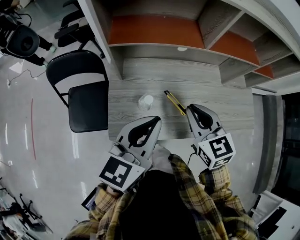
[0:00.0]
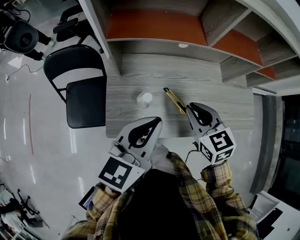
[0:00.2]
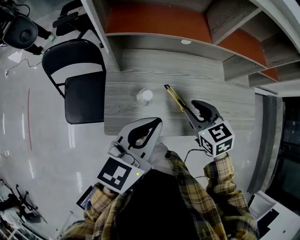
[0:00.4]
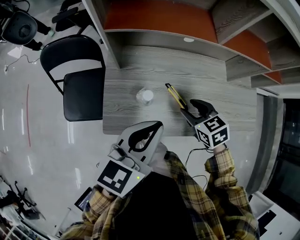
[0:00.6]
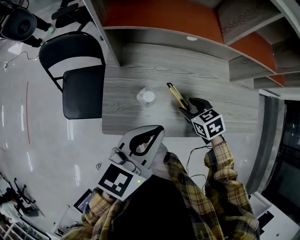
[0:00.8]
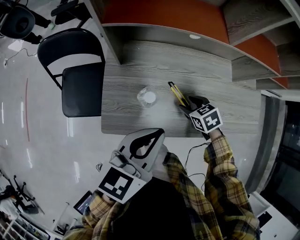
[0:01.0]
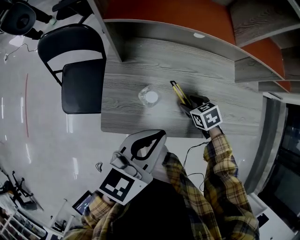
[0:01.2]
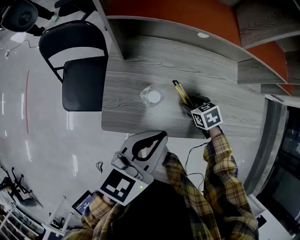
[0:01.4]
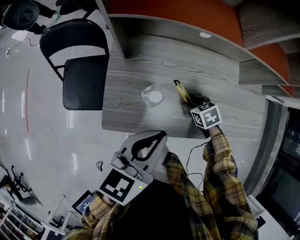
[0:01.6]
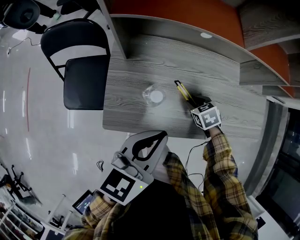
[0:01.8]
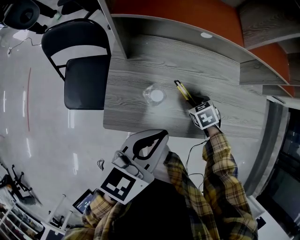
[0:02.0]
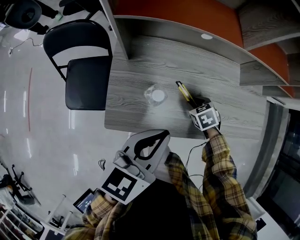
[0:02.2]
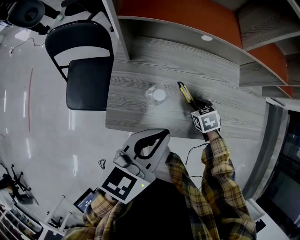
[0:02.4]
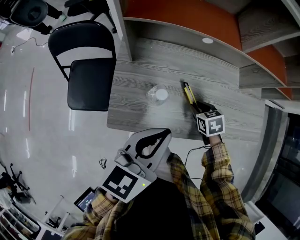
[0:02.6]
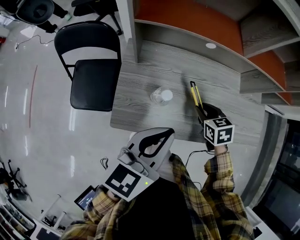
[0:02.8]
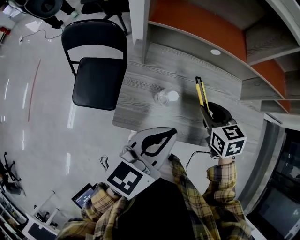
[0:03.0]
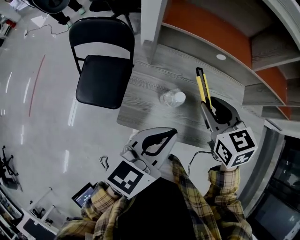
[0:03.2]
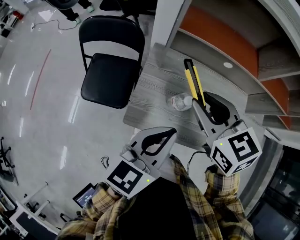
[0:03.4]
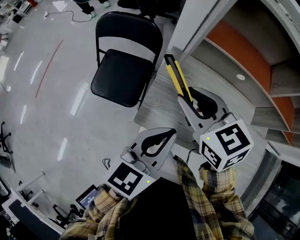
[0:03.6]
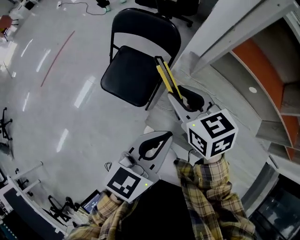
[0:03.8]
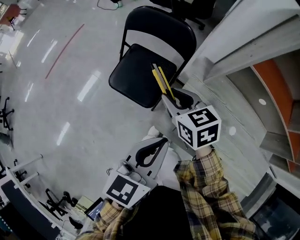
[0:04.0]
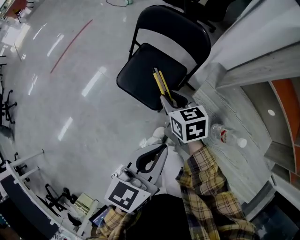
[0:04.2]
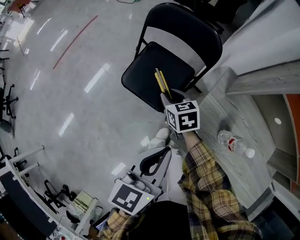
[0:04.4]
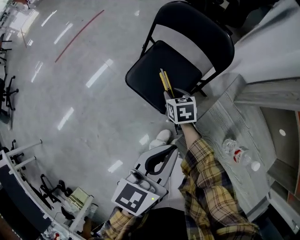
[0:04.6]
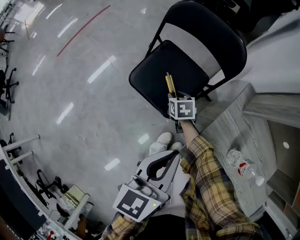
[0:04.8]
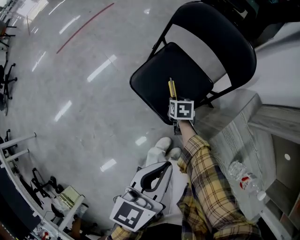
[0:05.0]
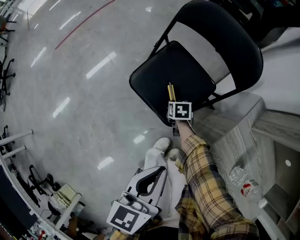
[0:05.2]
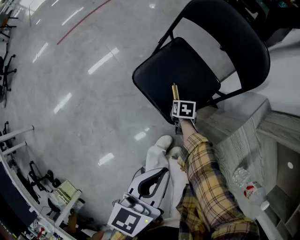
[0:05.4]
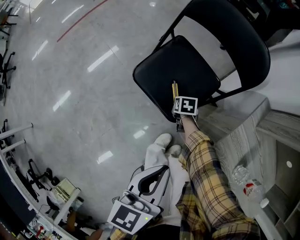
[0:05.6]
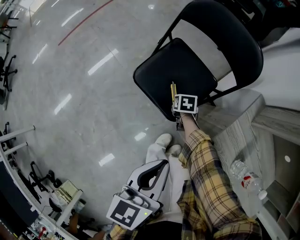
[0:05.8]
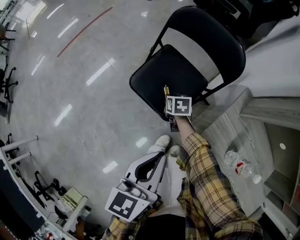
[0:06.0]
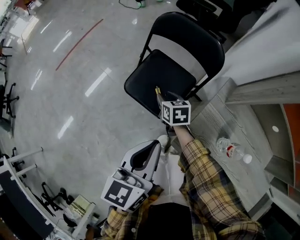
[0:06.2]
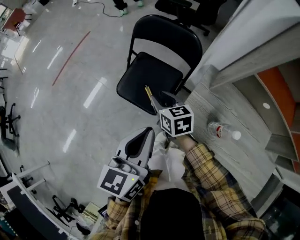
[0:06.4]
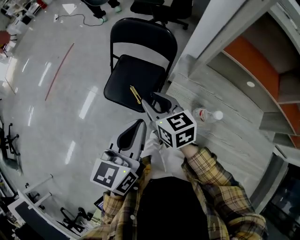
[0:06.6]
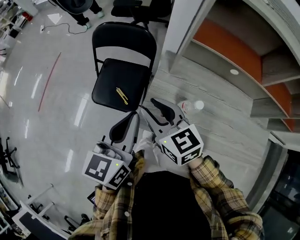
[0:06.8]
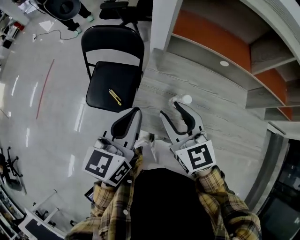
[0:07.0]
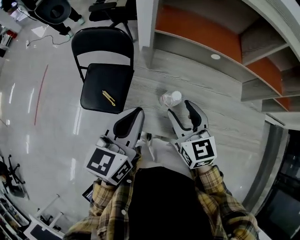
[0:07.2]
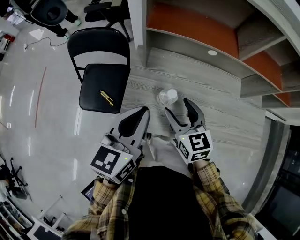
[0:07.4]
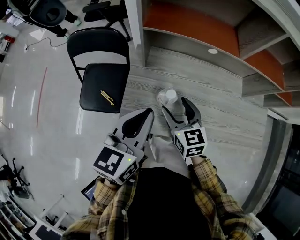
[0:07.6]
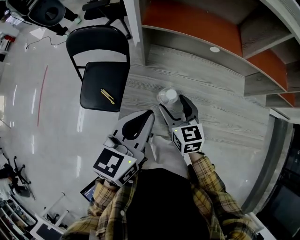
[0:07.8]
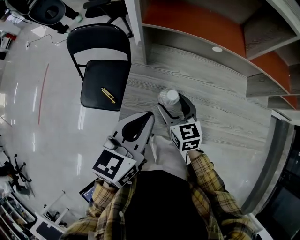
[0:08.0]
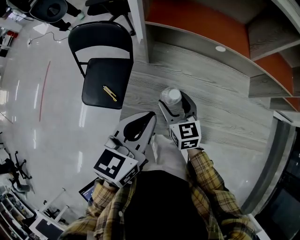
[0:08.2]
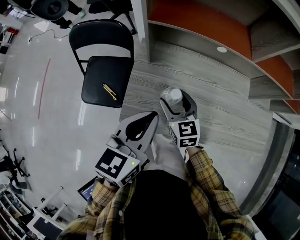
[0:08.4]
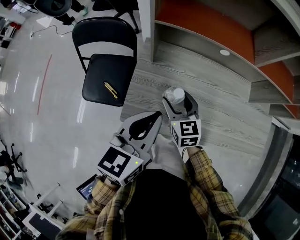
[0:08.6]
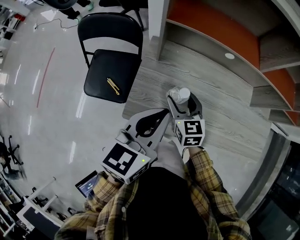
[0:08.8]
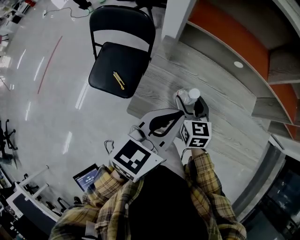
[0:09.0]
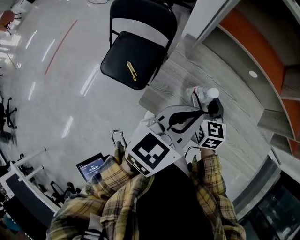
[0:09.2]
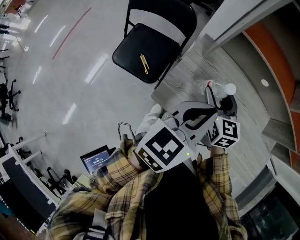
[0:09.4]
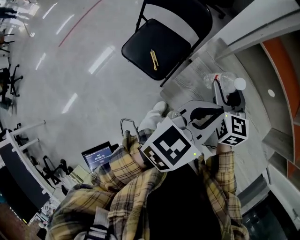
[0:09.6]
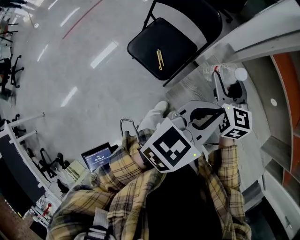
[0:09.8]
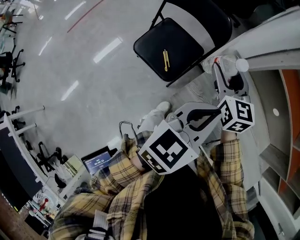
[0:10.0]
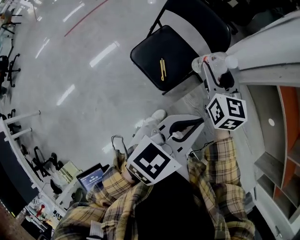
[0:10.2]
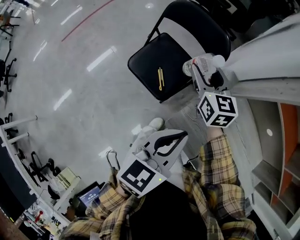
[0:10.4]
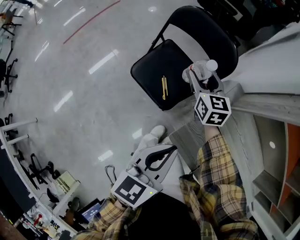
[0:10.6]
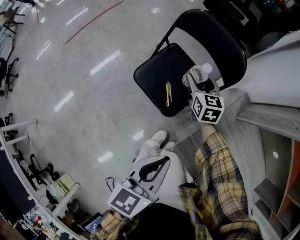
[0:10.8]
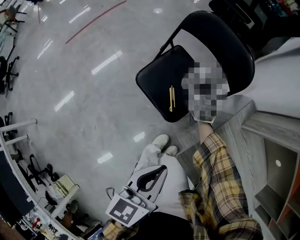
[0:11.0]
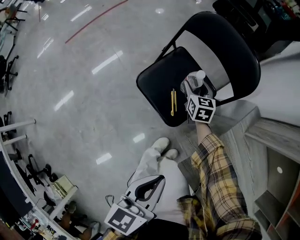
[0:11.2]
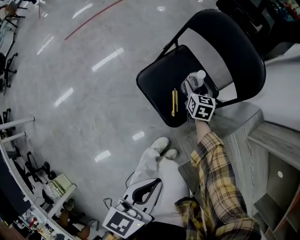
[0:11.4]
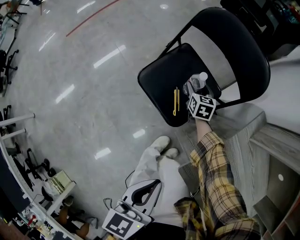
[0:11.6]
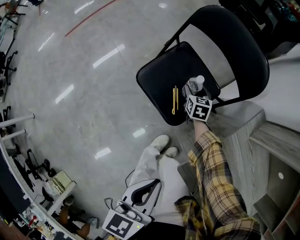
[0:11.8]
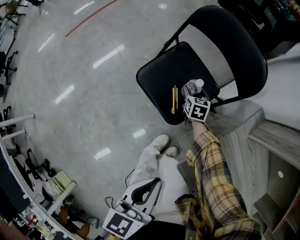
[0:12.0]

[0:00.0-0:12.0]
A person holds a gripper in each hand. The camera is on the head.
0:00.0 to 0:01.6: The left gripper shifts some 10 cm downward; the right gripper goes some 30 cm downward, tips its fingers downward by approximately 40 degrees, and opens.
0:01.6 to 0:03.0: The right gripper is displaced upward by roughly 20 cm, and changes its angle by about 20 degrees.
0:03.0 to 0:04.4: The left gripper ends up roughly 25 cm from where it was, and swivels roughly 40 degrees. Meanwhile the right gripper ends up approximately 50 cm from where it was, and rotates roughly 30 degrees.
0:04.4 to 0:06.0: The left gripper travels to the left and downward by some 10 cm. The right gripper moves downward, roughly 20 cm.
0:06.0 to 0:07.6: The right gripper moves about 50 cm, angles its fingers upward, by some 30 degrees, and opens up, while the left gripper changes place by approximately 30 cm, and rotates approximately 50 degrees.
0:07.6 to 0:09.0: The right gripper changes place by about 5 cm.
0:09.0 to 0:10.4: The right gripper ends up roughly 35 cm from where it was, and swivels roughly 30 degrees; the left gripper shifts by some 20 cm, and turns by roughly 30 degrees.
0:10.4 to 0:12.0: The left gripper travels downward and to the left by some 15 cm, and turns by about 30 degrees; the right gripper is displaced downward by approximately 35 cm, and rotates about 30 degrees.

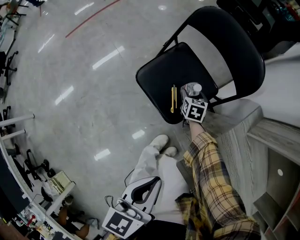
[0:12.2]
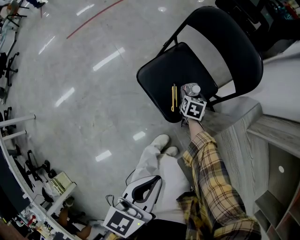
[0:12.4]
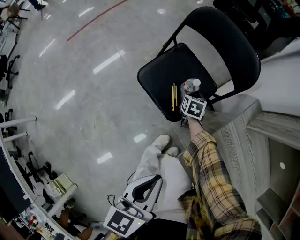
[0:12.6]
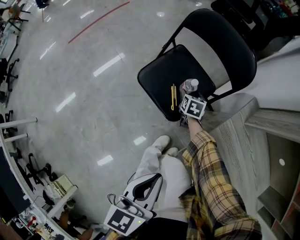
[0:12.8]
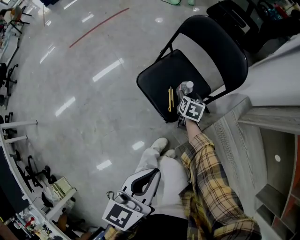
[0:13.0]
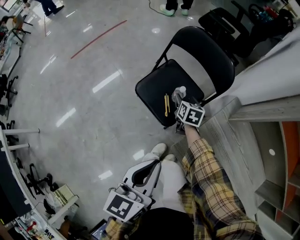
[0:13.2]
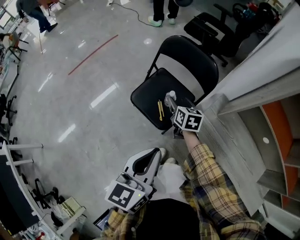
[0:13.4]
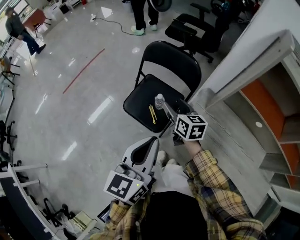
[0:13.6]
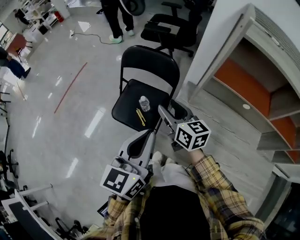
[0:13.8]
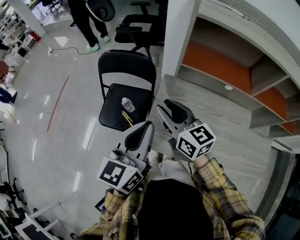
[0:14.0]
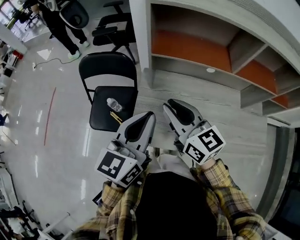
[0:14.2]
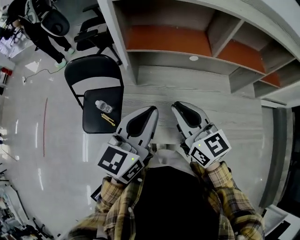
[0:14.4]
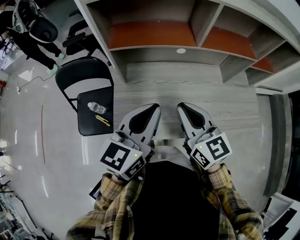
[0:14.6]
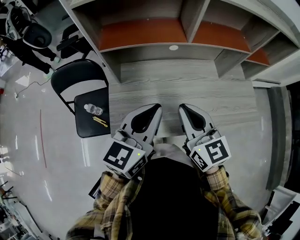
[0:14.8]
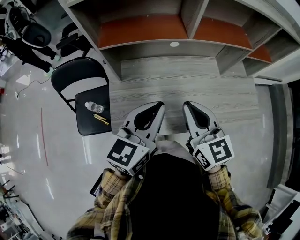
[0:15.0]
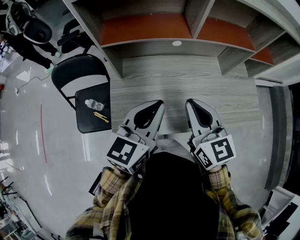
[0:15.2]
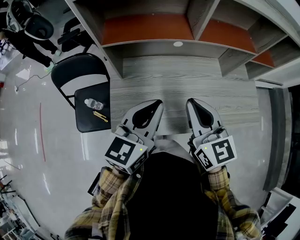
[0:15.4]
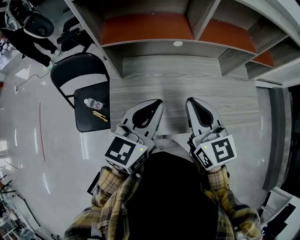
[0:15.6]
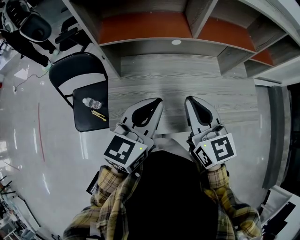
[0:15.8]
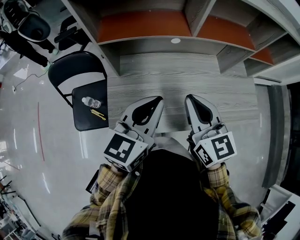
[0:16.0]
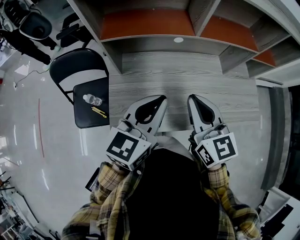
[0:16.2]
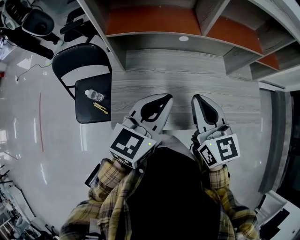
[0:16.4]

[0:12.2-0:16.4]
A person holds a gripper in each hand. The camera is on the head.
0:12.2 to 0:13.6: The right gripper moves upward, some 35 cm, and rotates some 30 degrees; the left gripper is displaced upward by some 20 cm, and turns by roughly 30 degrees.
0:13.6 to 0:15.0: The right gripper ends up some 50 cm from where it was, rotates roughly 50 degrees, and closes up. Meanwhile the left gripper shifts by some 30 cm, and swivels about 50 degrees.
0:15.0 to 0:16.4: The grippers stay close to where they were, moving slightly.

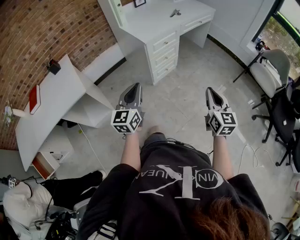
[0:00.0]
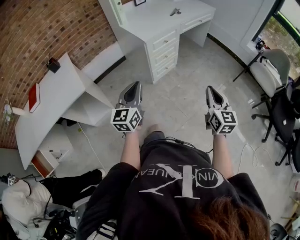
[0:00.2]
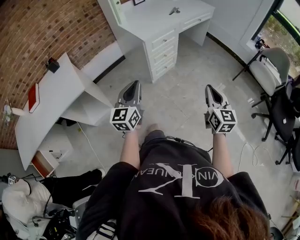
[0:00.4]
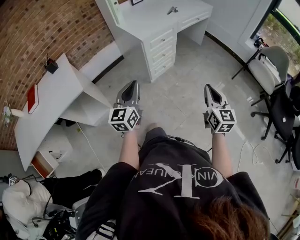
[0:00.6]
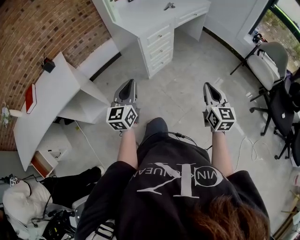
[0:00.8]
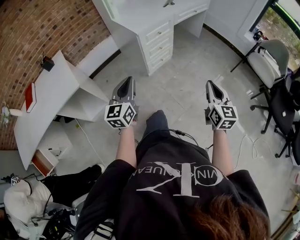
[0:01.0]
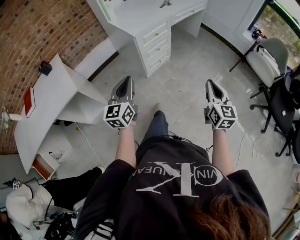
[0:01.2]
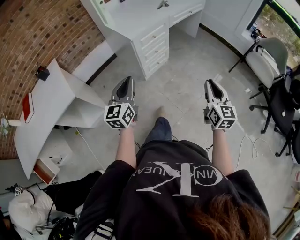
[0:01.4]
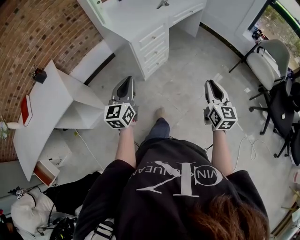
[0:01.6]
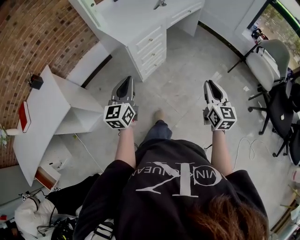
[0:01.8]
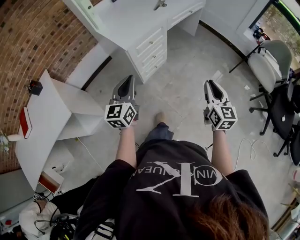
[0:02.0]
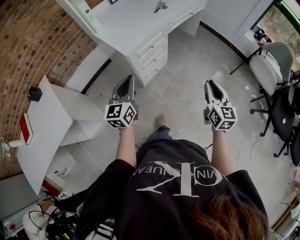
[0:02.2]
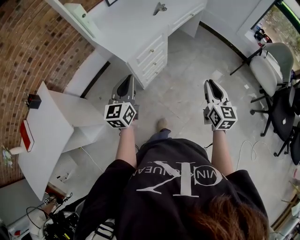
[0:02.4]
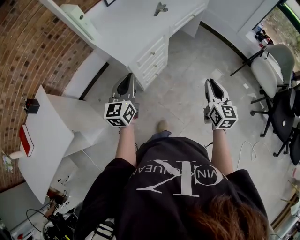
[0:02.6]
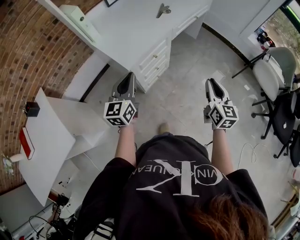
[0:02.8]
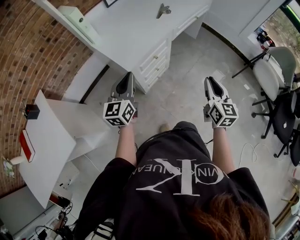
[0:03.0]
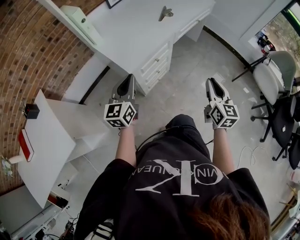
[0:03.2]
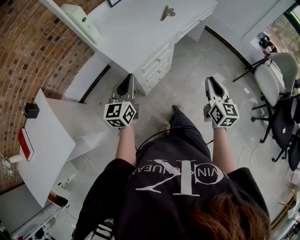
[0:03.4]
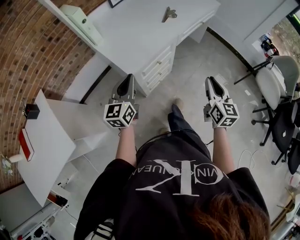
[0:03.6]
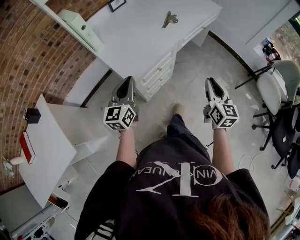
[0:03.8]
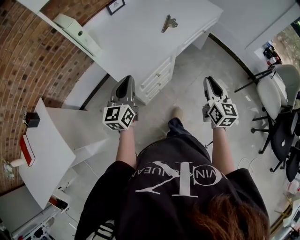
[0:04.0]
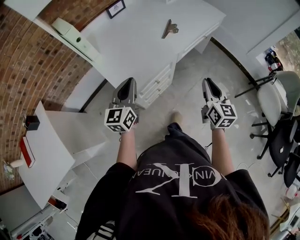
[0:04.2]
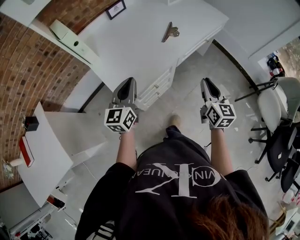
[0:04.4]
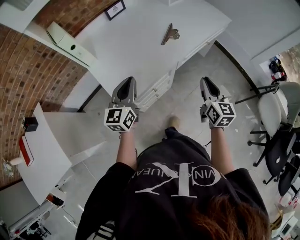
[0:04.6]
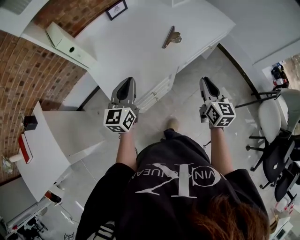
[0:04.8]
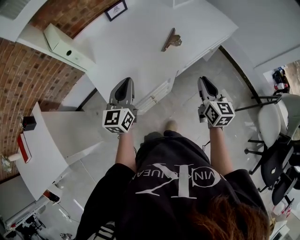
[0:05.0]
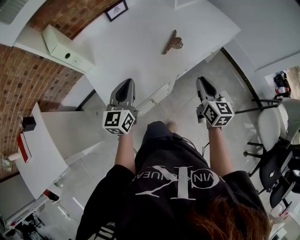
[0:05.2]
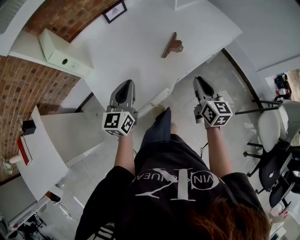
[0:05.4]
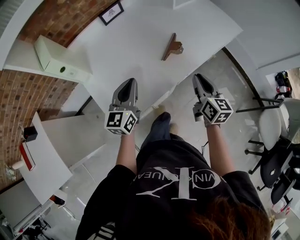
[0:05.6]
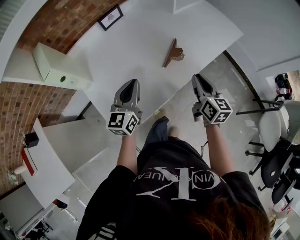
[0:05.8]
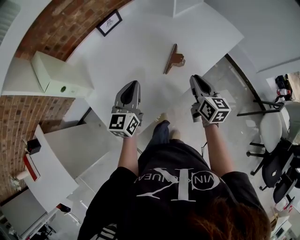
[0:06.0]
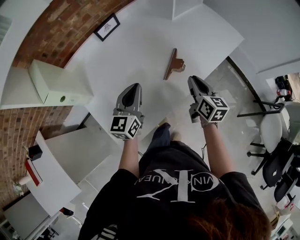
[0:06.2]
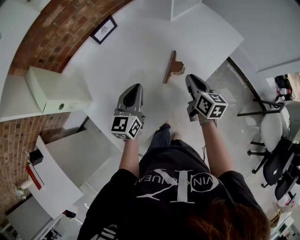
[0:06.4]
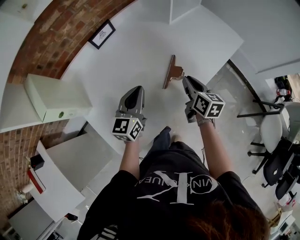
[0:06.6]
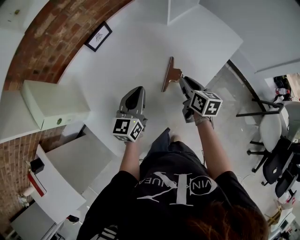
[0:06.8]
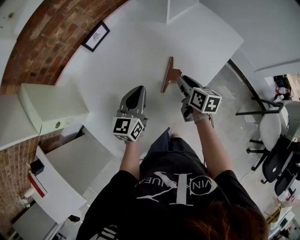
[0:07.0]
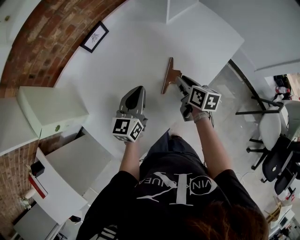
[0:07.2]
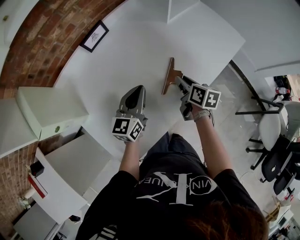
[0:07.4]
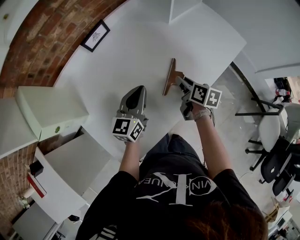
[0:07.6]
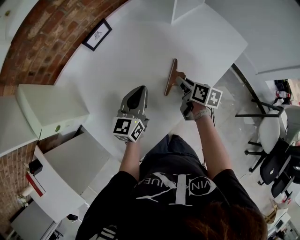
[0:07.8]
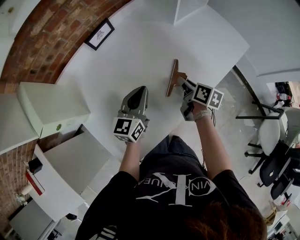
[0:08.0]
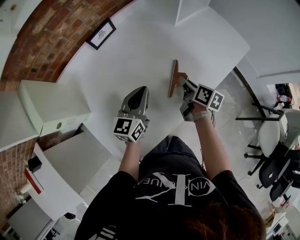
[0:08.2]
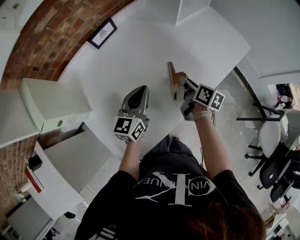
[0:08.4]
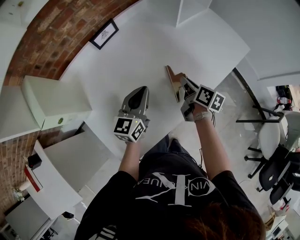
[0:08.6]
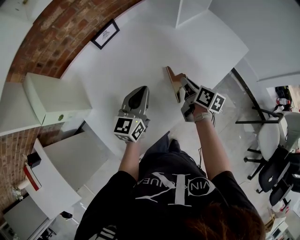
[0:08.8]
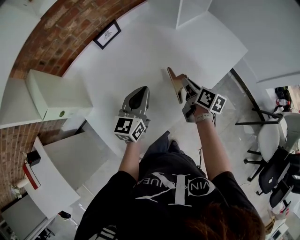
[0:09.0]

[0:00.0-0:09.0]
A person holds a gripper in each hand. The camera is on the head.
0:00.0 to 0:01.6: The right gripper heads forward and to the right, covering roughly 10 cm. The left gripper is displaced forward by approximately 10 cm.
0:01.6 to 0:03.0: Both grippers move forward, about 25 cm.
0:03.0 to 0:04.4: The grippers both shift forward by approximately 20 cm.
0:04.4 to 0:06.0: The grippers both shift forward by some 20 cm.
0:06.0 to 0:07.6: The left gripper shifts roughly 10 cm forward. Meanwhile the right gripper is displaced forward and downward by about 15 cm, and changes its angle by roughly 30 degrees.
0:07.6 to 0:09.0: The grippers make only small movements.
